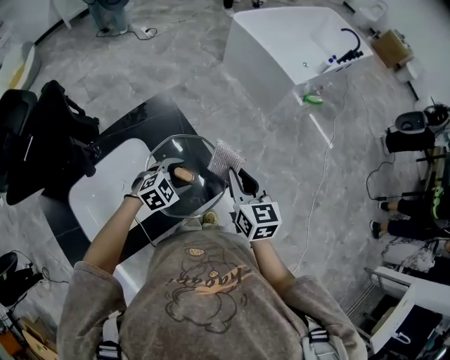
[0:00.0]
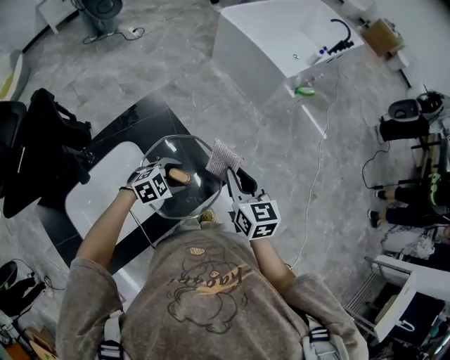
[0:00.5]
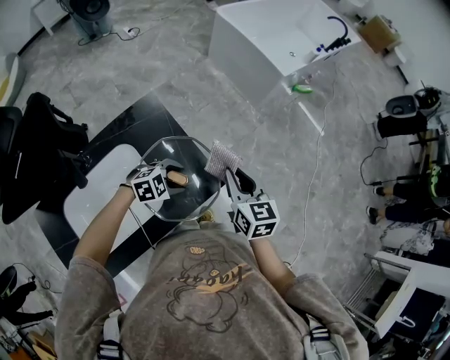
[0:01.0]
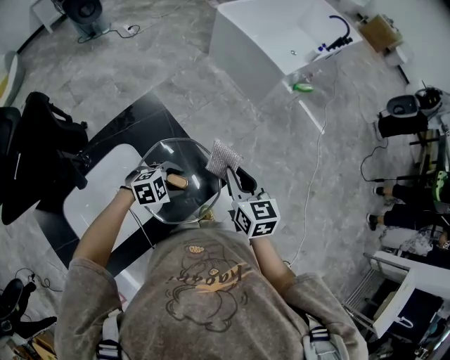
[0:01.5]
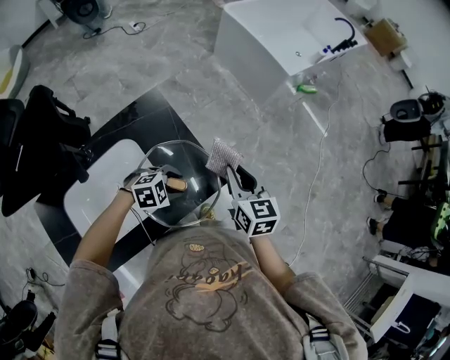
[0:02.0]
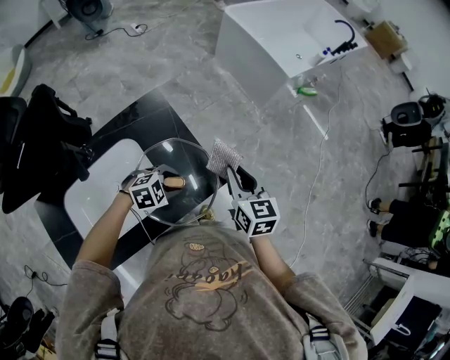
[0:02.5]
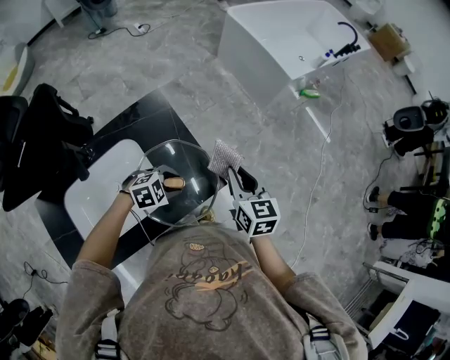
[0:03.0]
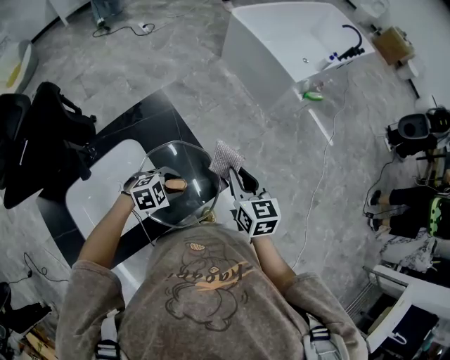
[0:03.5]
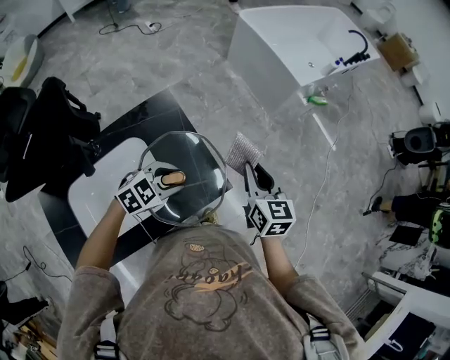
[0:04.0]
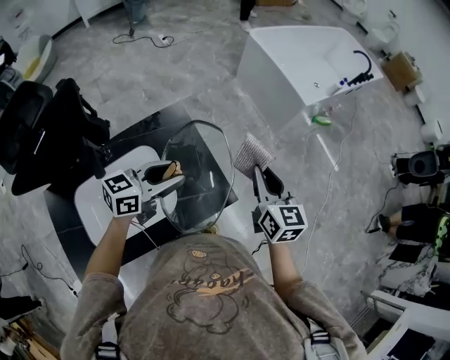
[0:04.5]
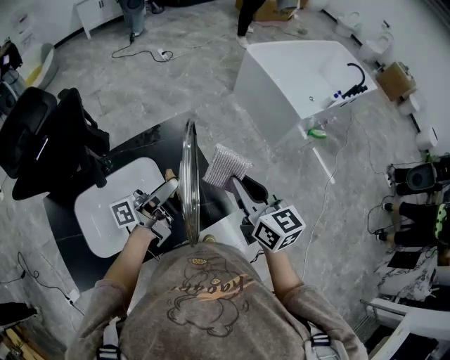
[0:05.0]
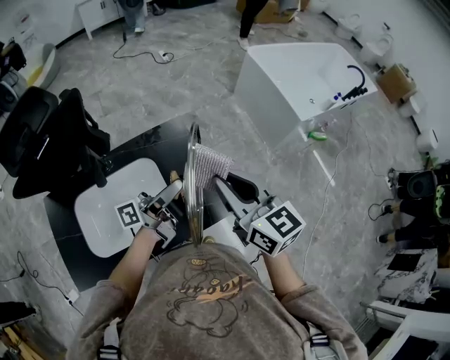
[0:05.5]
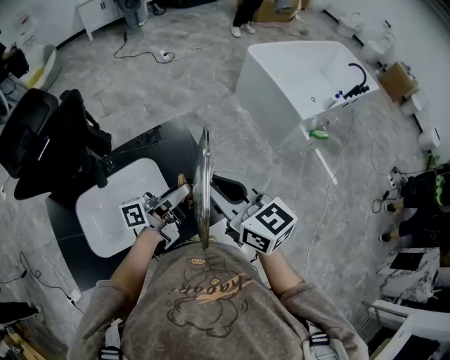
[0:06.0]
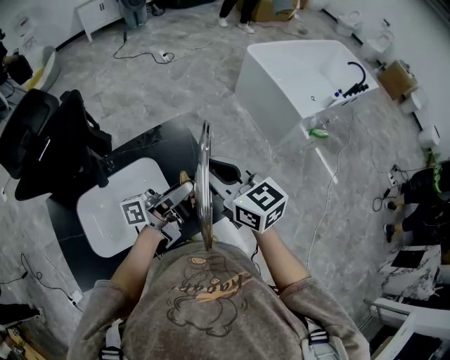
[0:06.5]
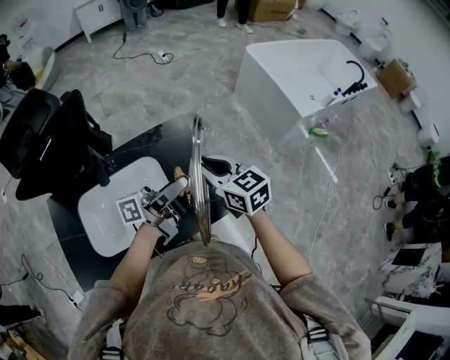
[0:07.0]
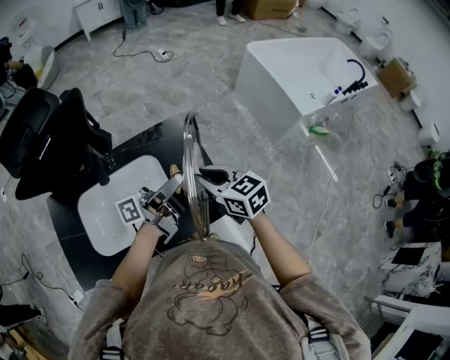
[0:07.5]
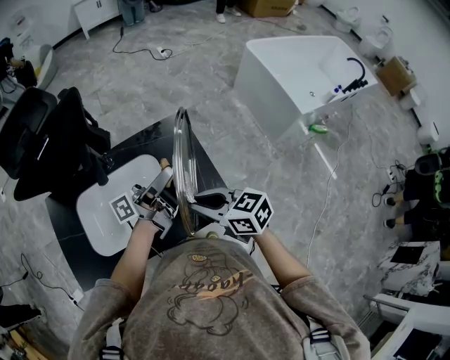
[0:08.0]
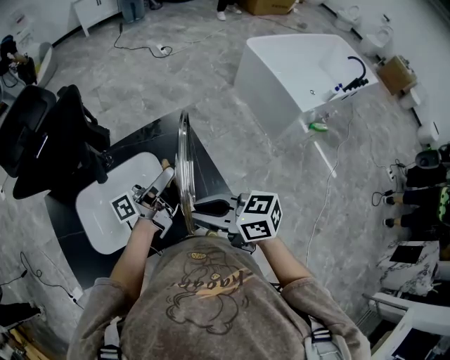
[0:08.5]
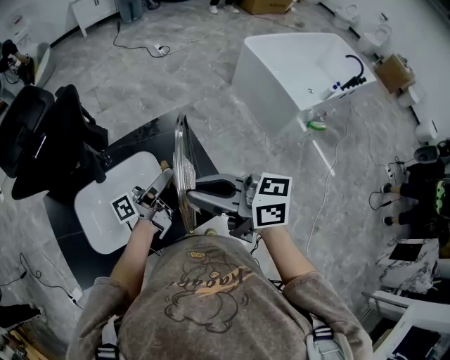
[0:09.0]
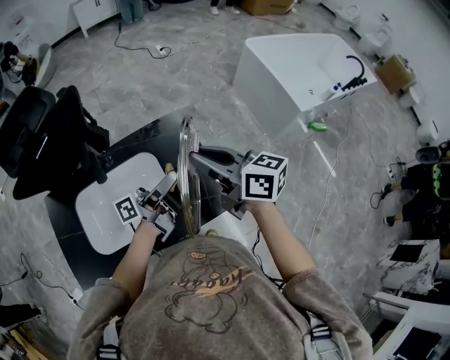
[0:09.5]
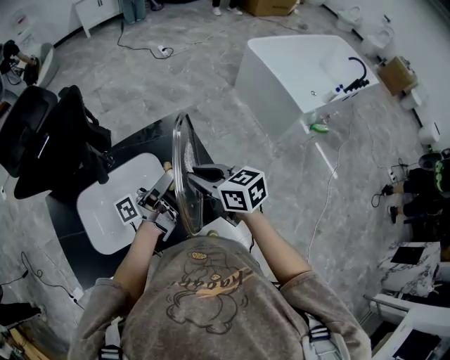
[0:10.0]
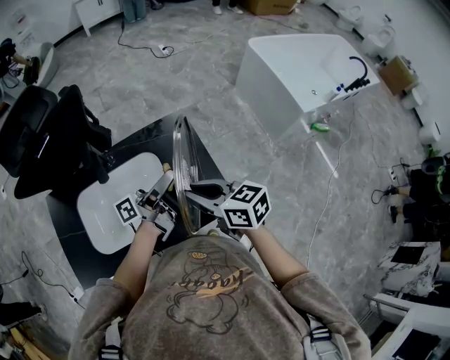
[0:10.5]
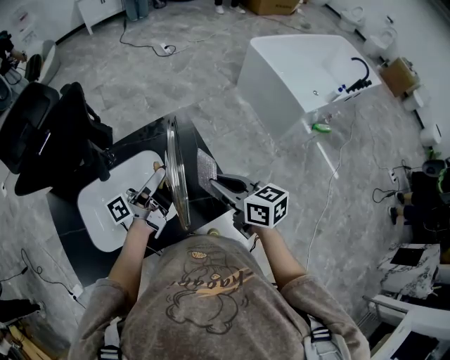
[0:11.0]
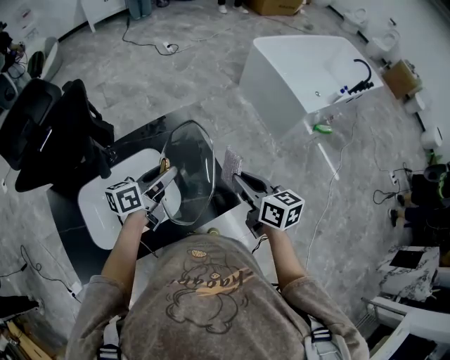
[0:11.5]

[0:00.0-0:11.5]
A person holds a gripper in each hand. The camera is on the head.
0:00.0 to 0:02.0: The left gripper changes its angle by approximately 20 degrees.
0:02.0 to 0:04.0: The right gripper ends up about 5 cm from where it was. Meanwhile the left gripper moves upward, roughly 10 cm, and changes its angle by about 20 degrees.
0:04.0 to 0:06.0: The right gripper shifts by roughly 20 cm, and swivels about 40 degrees; the left gripper is displaced upward by about 15 cm, and points its fingers some 60 degrees further upward.
0:06.0 to 0:07.5: The right gripper heads downward, covering approximately 10 cm.
0:07.5 to 0:09.5: The right gripper heads upward, covering roughly 10 cm, and rotates approximately 30 degrees.
0:09.5 to 0:11.5: The left gripper is displaced downward by some 5 cm, and angles its fingers downward, by some 30 degrees; the right gripper goes about 15 cm downward and to the right, and rotates roughly 30 degrees.

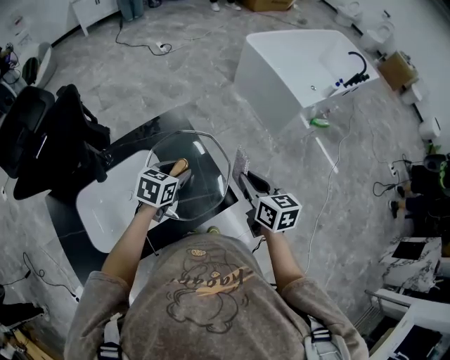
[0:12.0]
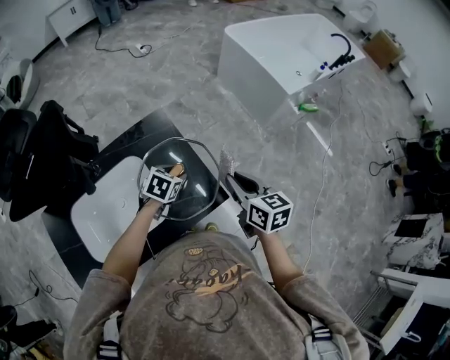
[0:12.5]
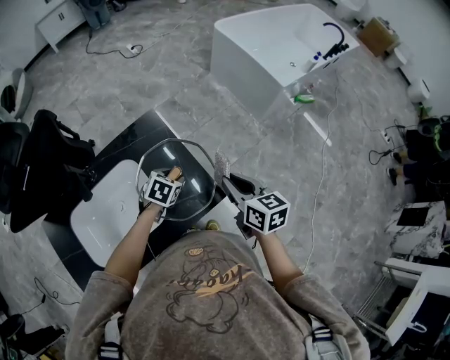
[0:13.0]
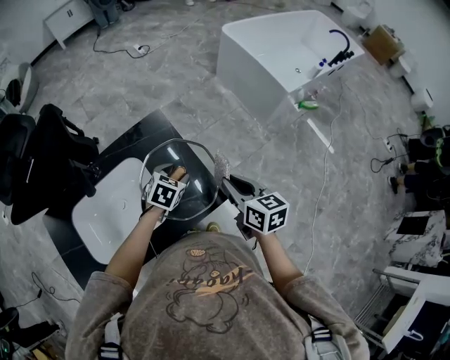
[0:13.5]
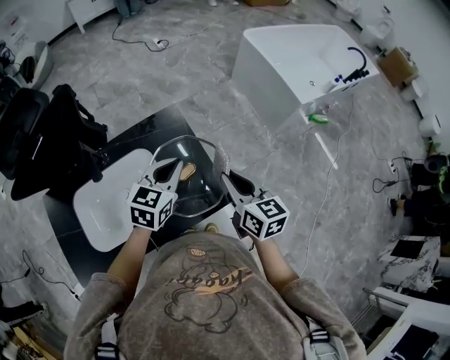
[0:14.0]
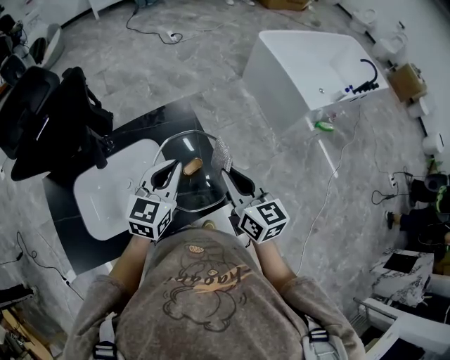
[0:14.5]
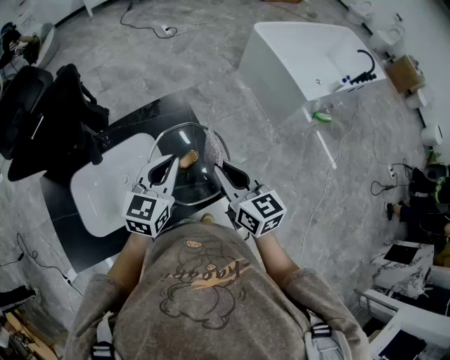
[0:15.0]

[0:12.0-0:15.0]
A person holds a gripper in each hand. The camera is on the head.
0:12.0 to 0:13.5: The left gripper shifts about 5 cm downward.
0:13.5 to 0:15.0: The left gripper heads upward, covering roughly 15 cm, points its fingers roughly 40 degrees further upward, and closes its fingers; the right gripper heads to the left and upward, covering about 10 cm.

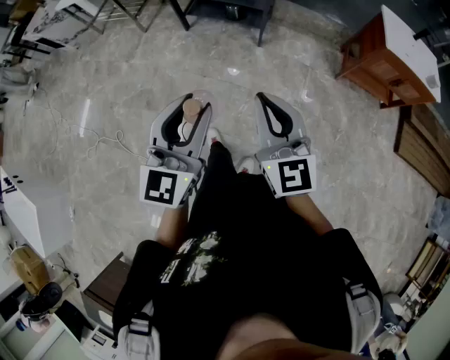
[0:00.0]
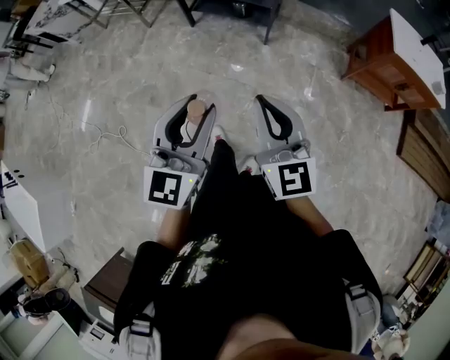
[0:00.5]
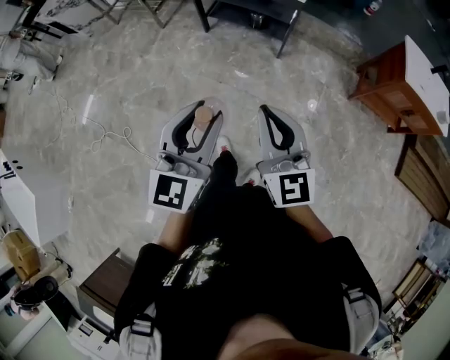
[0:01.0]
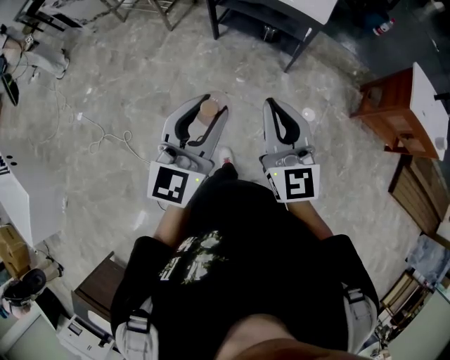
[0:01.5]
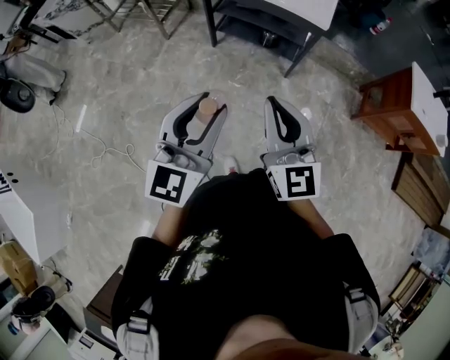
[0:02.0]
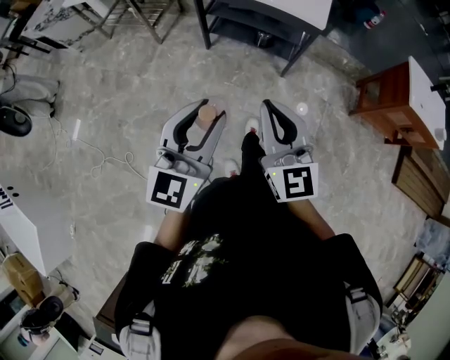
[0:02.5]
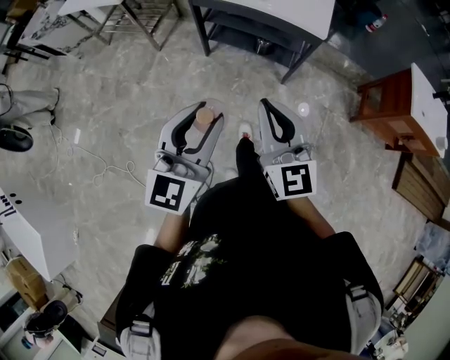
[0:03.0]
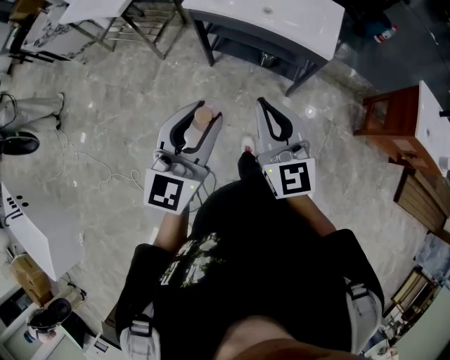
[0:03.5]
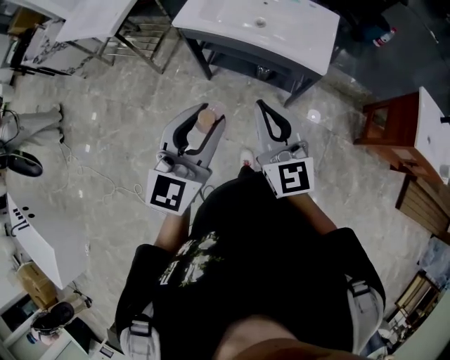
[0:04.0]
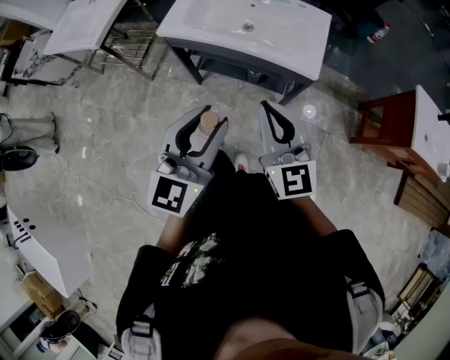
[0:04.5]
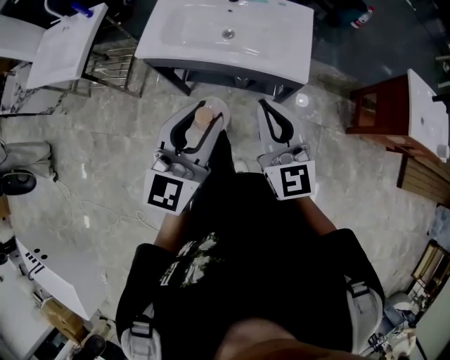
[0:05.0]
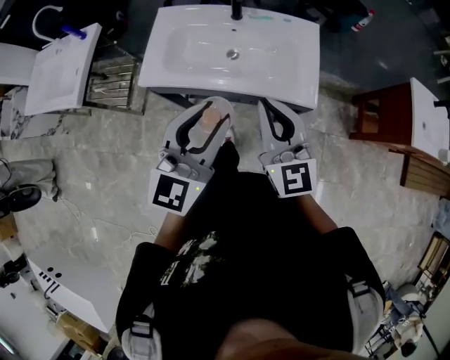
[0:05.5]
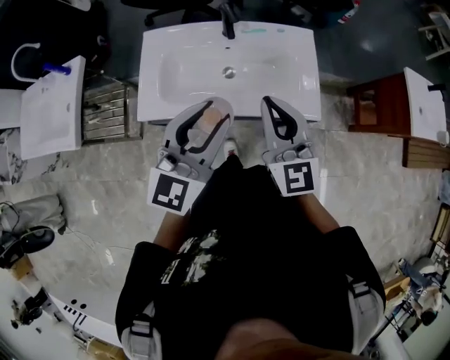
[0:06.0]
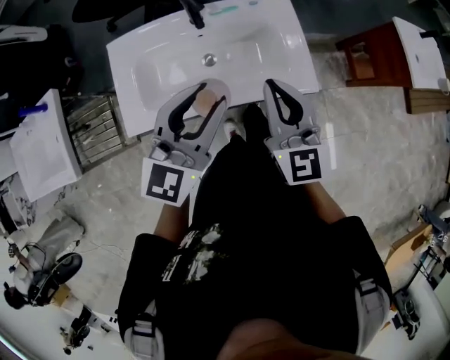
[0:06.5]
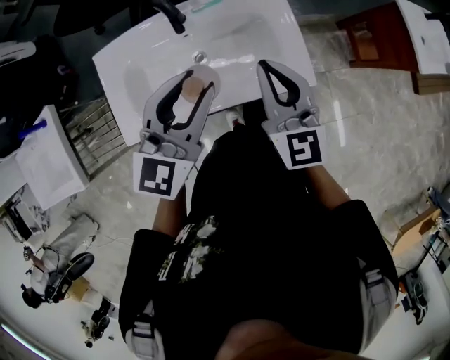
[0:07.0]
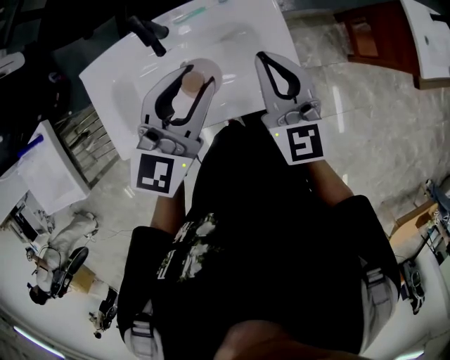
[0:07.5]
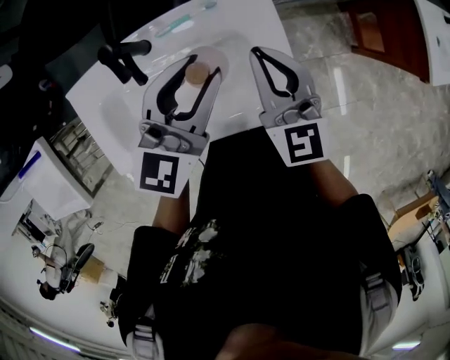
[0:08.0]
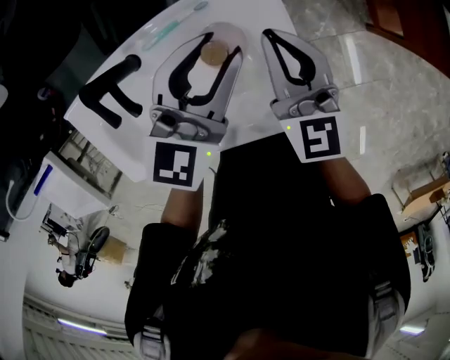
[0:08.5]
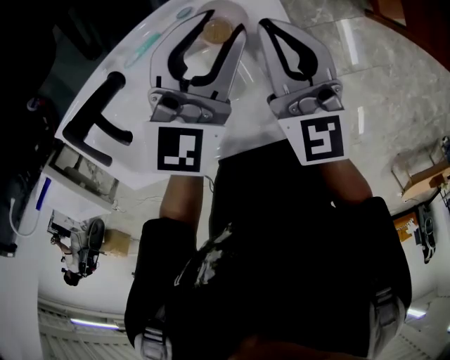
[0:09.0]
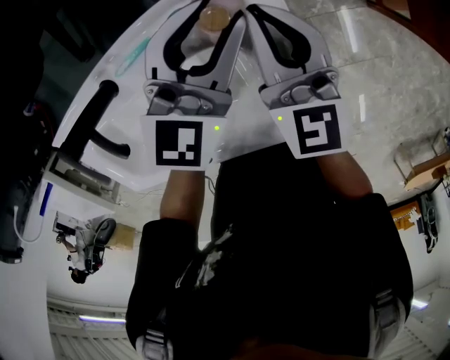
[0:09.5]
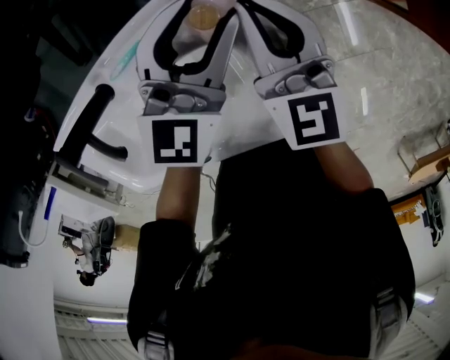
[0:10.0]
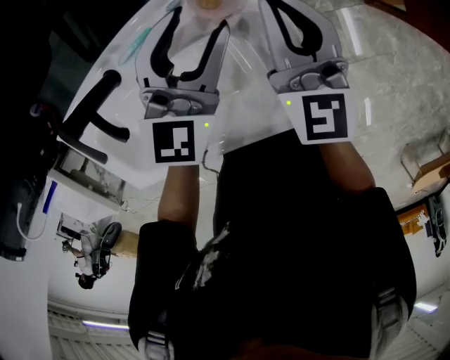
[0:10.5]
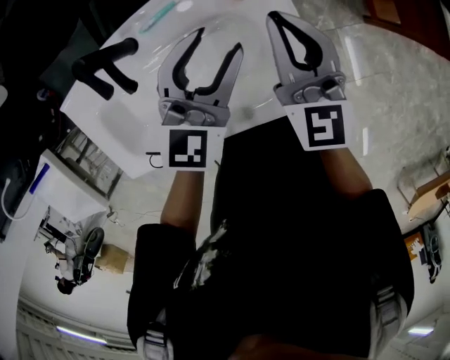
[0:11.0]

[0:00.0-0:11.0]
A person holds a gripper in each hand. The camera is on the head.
0:00.0 to 0:02.0: The grippers both shift to the left and forward by roughly 30 cm.
0:02.0 to 0:03.5: Both grippers travel together forward, about 25 cm.
0:03.5 to 0:05.5: Both grippers travel together forward, about 40 cm.
0:05.5 to 0:07.5: The two grippers go approximately 35 cm forward. The right gripper turns by some 20 degrees. The left gripper swivels roughly 30 degrees.
0:07.5 to 0:09.0: The left gripper shifts some 35 cm forward, downward and to the right. Meanwhile the right gripper shifts some 30 cm forward and downward.
0:09.0 to 0:11.0: The right gripper heads backward and upward, covering approximately 10 cm. The left gripper moves backward, some 15 cm.

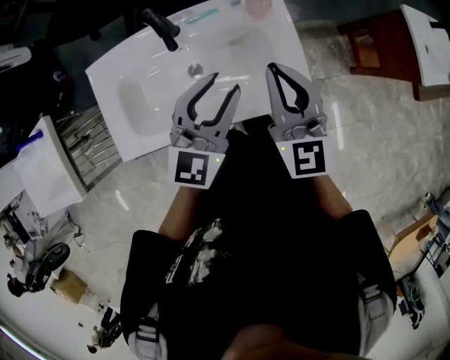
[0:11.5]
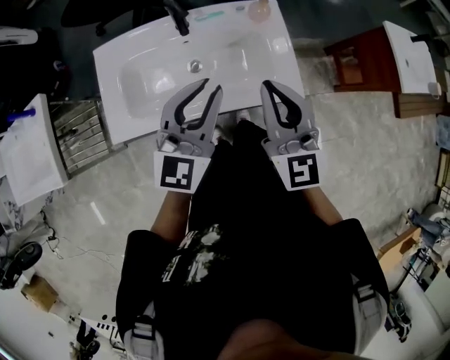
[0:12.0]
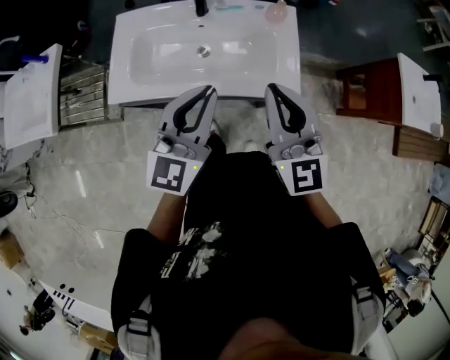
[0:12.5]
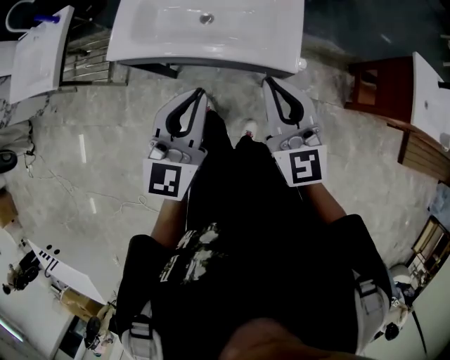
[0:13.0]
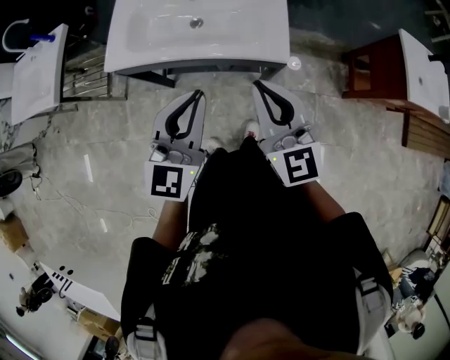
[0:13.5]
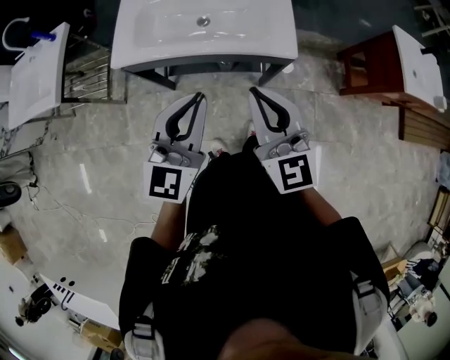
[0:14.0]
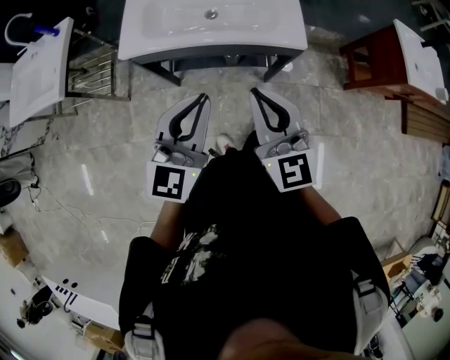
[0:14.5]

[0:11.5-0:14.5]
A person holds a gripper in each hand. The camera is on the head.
0:11.5 to 0:13.0: The right gripper ends up about 25 cm from where it was, and rotates approximately 30 degrees; the left gripper moves roughly 30 cm, turns by approximately 30 degrees, and closes.
0:13.0 to 0:14.5: Both grippers travel together backward and to the left, roughly 20 cm.
